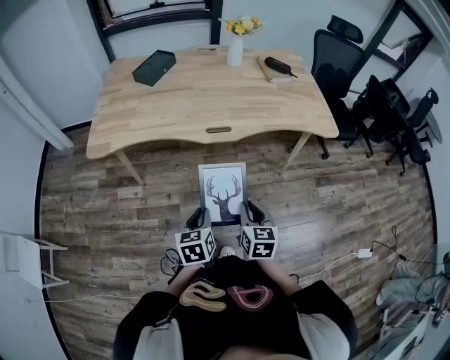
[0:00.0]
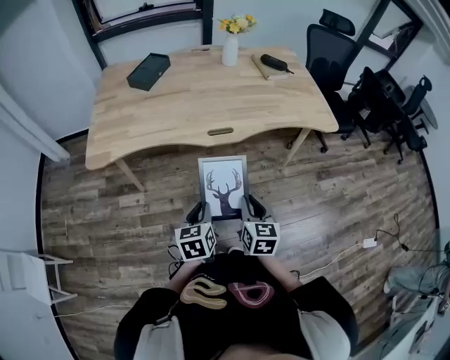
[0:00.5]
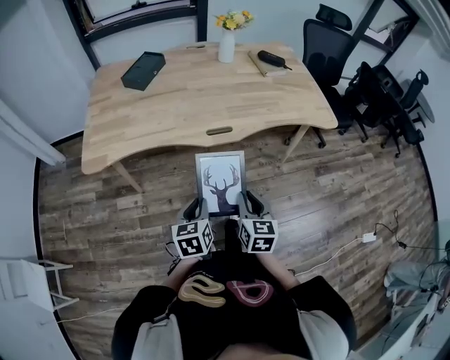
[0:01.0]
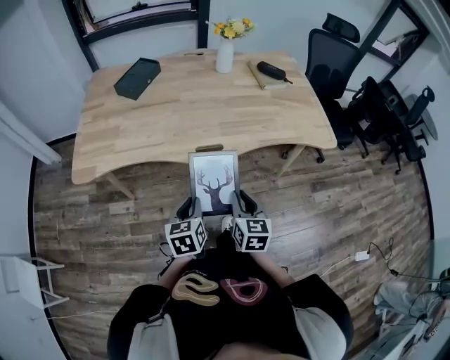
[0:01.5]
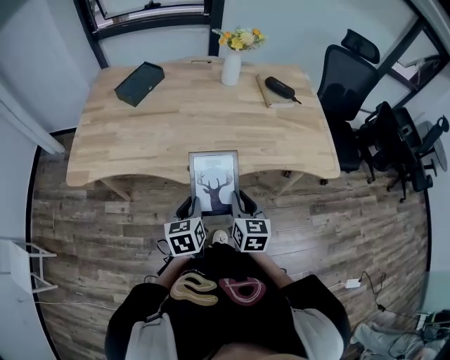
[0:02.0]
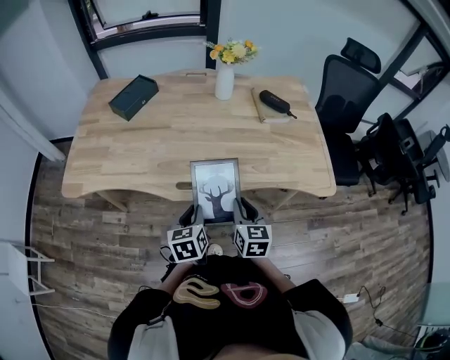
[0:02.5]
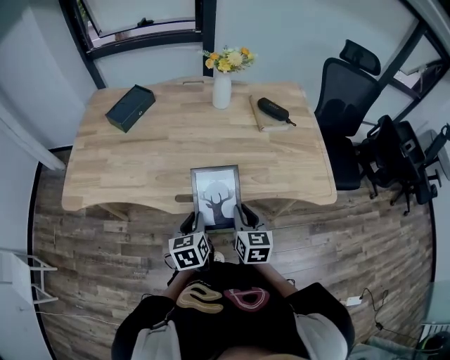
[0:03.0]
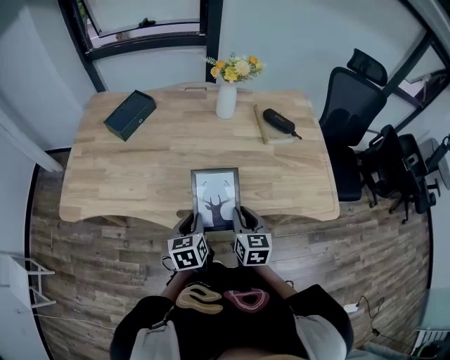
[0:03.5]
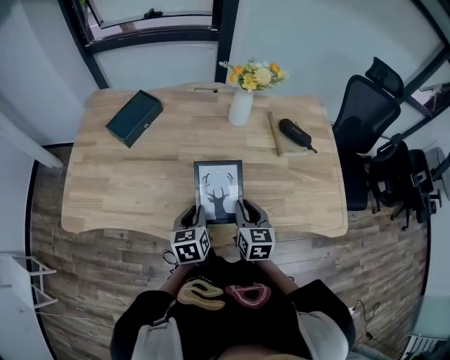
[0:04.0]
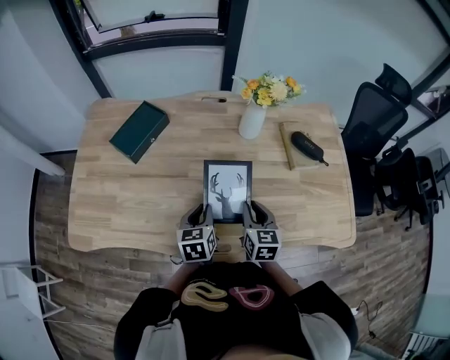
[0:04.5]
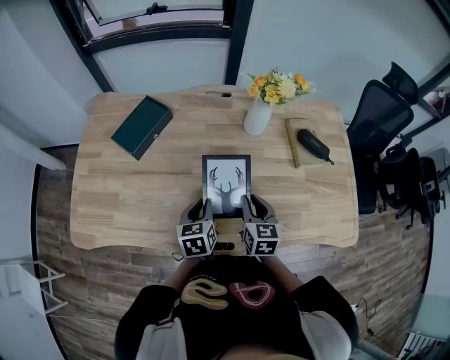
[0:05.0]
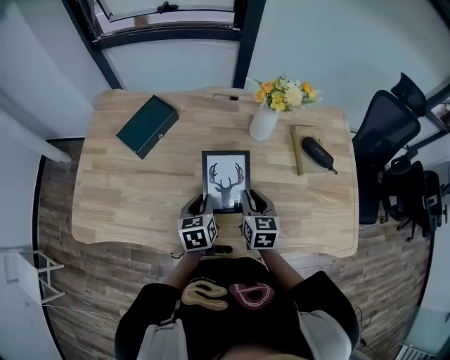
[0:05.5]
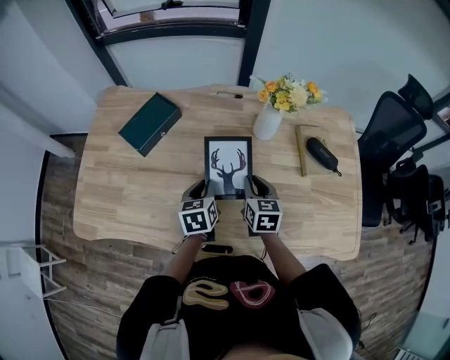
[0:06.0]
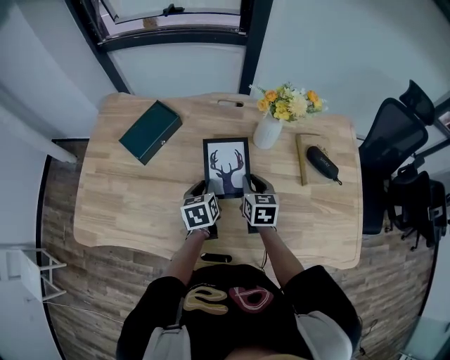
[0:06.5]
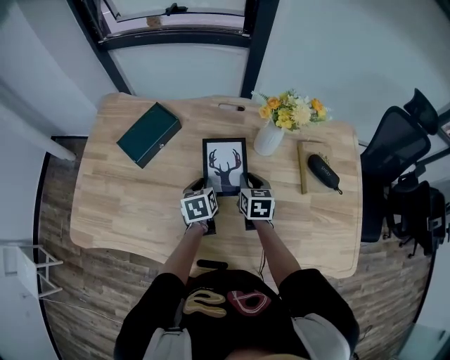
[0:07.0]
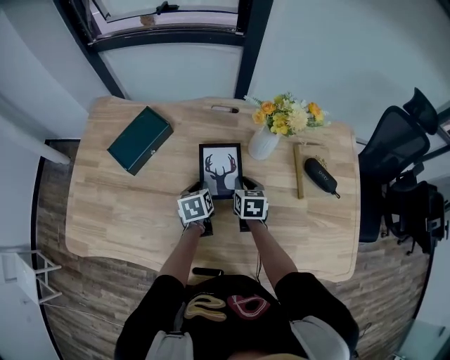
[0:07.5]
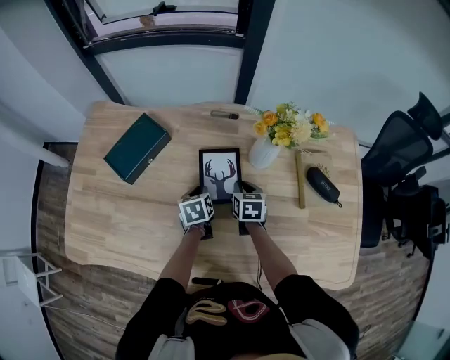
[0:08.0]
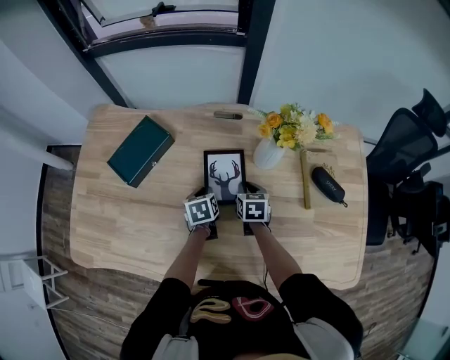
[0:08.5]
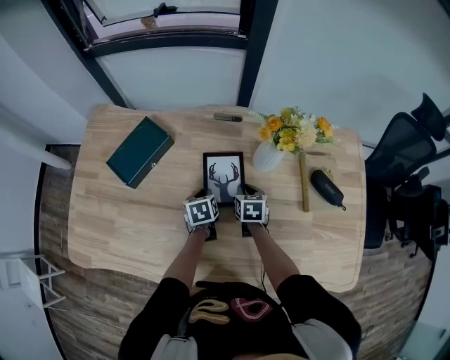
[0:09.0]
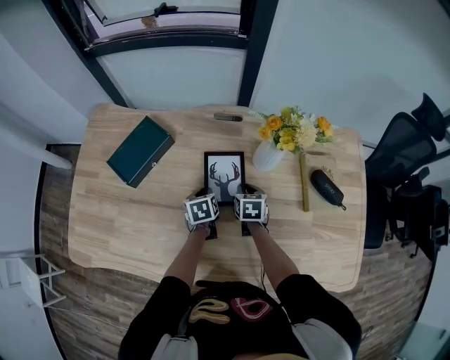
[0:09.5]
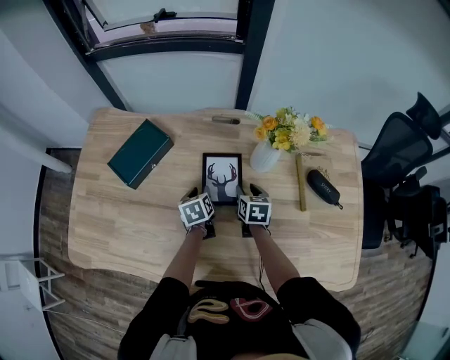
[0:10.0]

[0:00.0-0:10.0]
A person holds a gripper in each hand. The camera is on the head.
0:00.0 to 0:02.0: The two grippers go some 25 cm forward.
0:02.0 to 0:04.0: The two grippers go about 25 cm forward.
0:04.0 to 0:06.0: The two grippers go roughly 15 cm forward.
0:06.0 to 0:08.0: Both grippers travel together forward and downward, some 15 cm.
0:08.0 to 0:10.0: The right gripper opens its fingers.

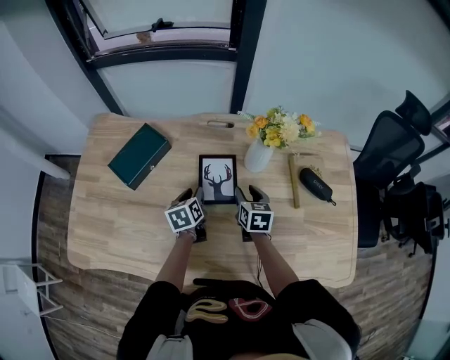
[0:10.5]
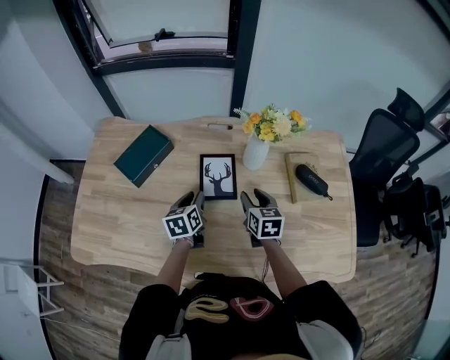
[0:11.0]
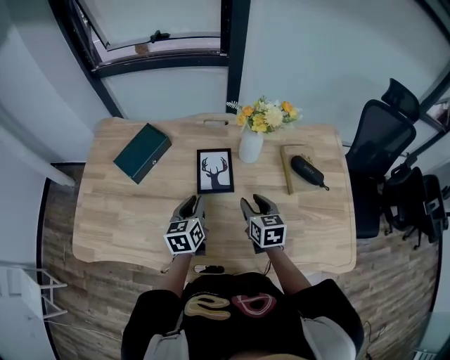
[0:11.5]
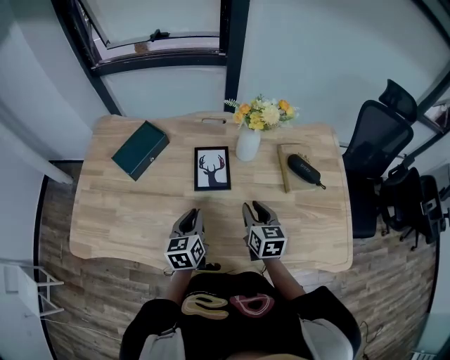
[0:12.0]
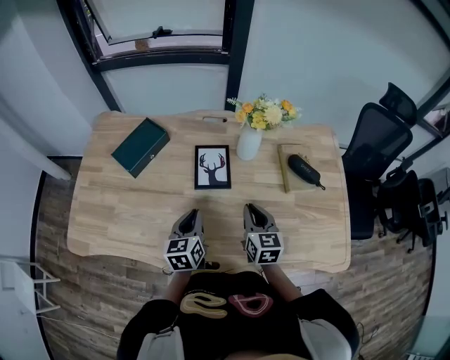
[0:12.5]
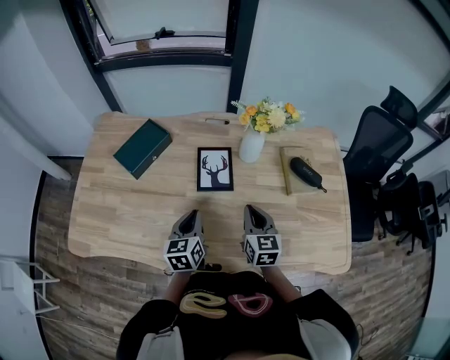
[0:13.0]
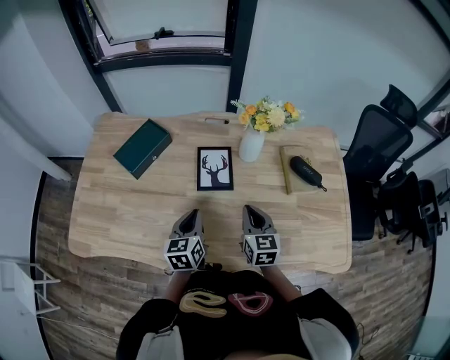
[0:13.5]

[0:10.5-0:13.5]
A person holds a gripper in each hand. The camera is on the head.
0:10.5 to 0:12.0: Both grippers travel together backward and upward, approximately 15 cm.
0:12.0 to 0:13.5: The right gripper closes.

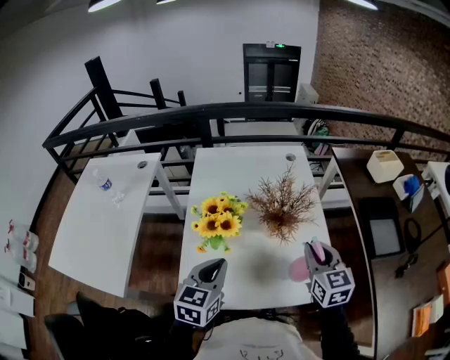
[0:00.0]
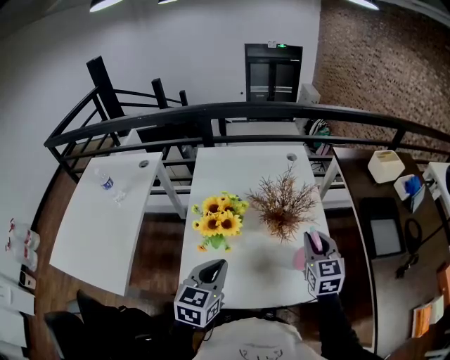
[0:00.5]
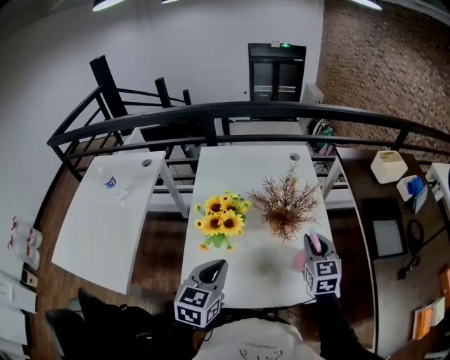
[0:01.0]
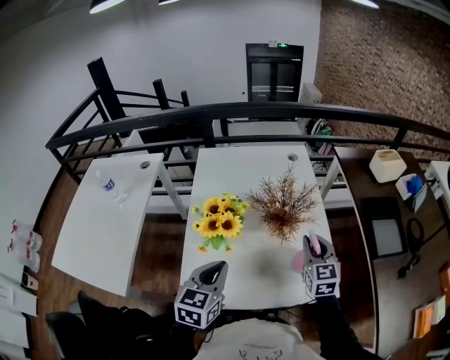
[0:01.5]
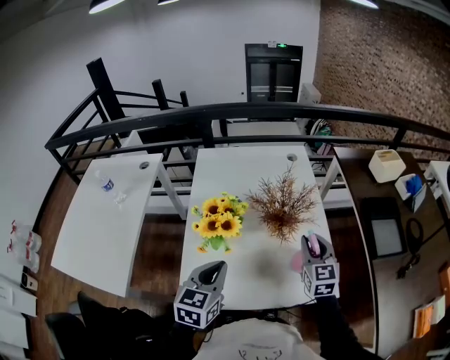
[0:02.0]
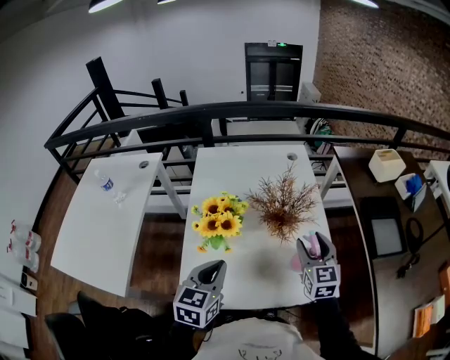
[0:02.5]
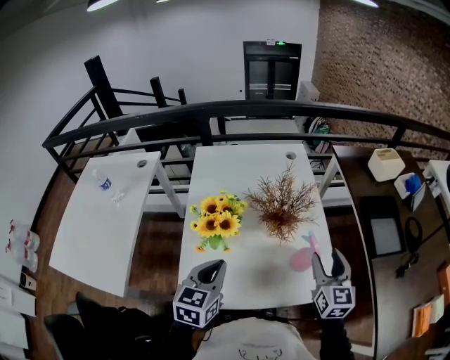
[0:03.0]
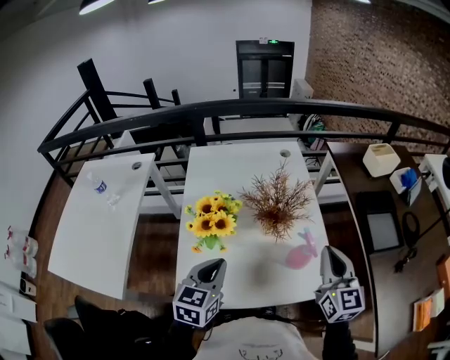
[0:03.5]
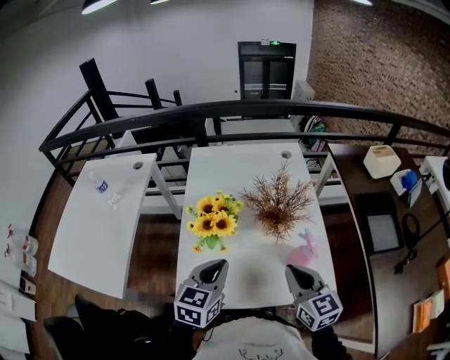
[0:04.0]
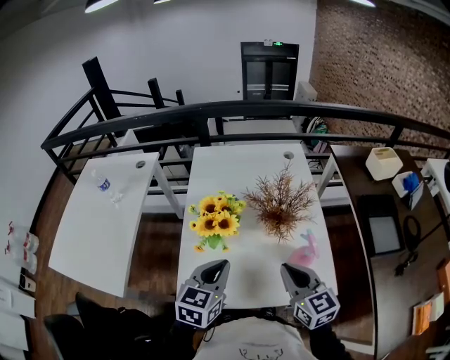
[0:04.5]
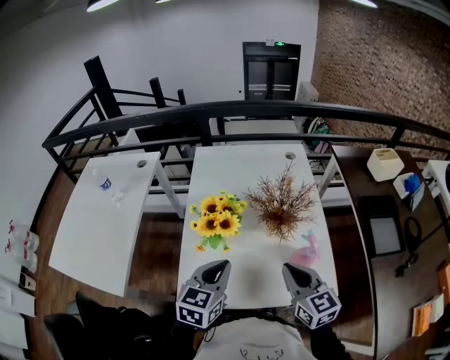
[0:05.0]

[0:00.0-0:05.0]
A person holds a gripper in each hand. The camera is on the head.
0:00.0 to 0:02.5: The right gripper opens.
0:02.5 to 0:05.0: The right gripper moves backward and to the left, roughly 10 cm, swivels some 20 degrees, and closes up.

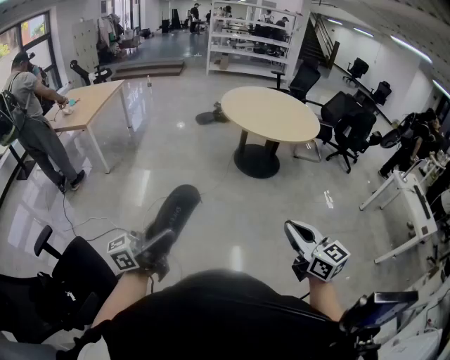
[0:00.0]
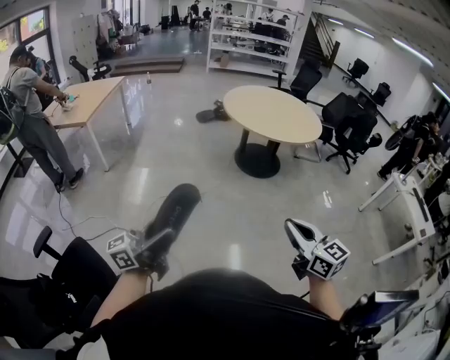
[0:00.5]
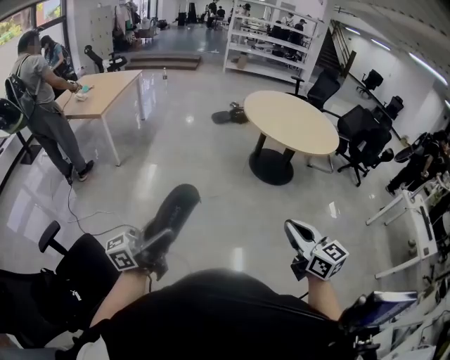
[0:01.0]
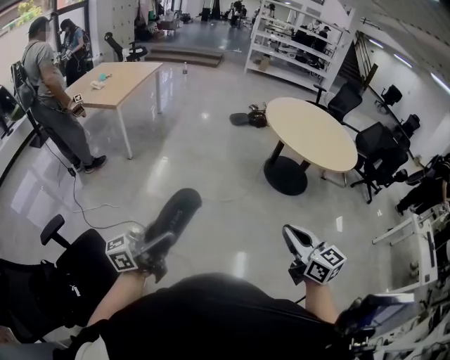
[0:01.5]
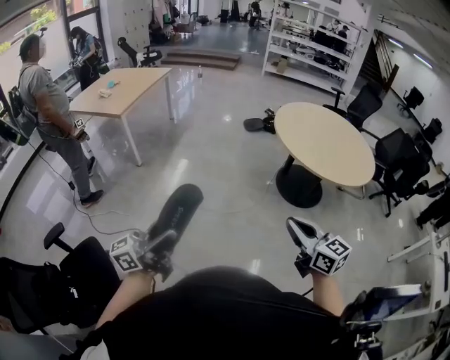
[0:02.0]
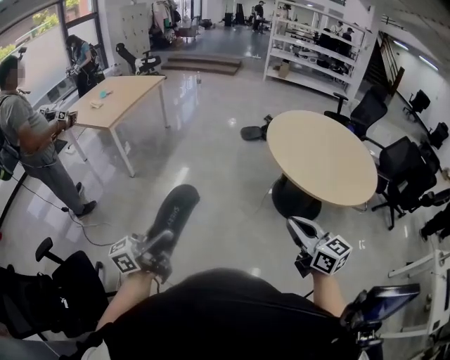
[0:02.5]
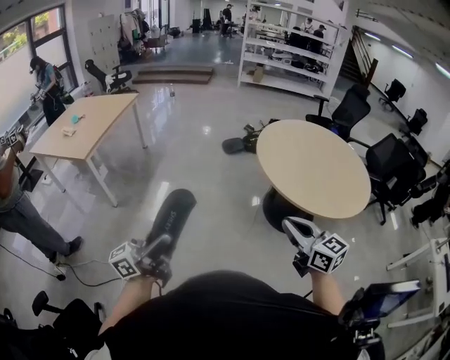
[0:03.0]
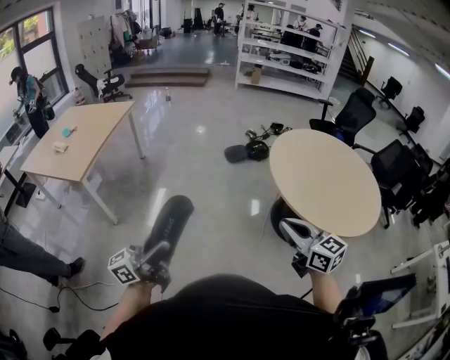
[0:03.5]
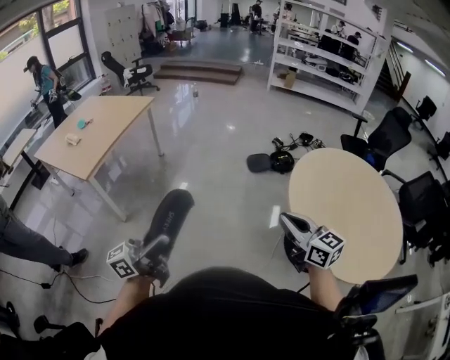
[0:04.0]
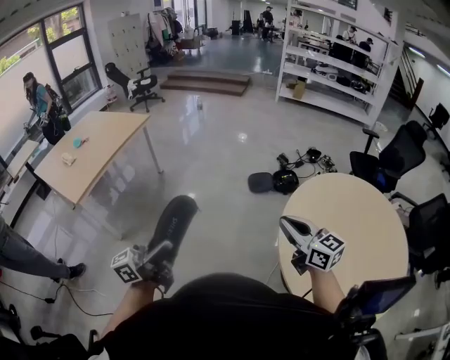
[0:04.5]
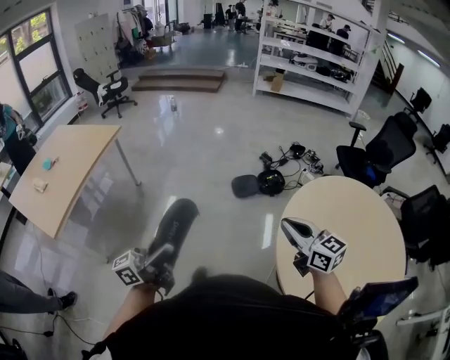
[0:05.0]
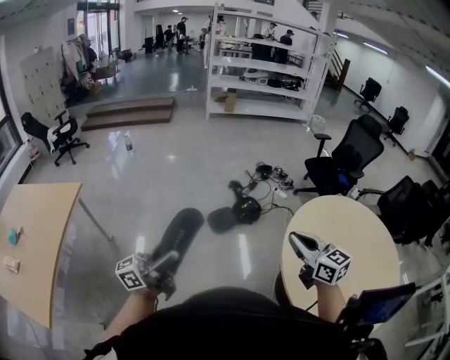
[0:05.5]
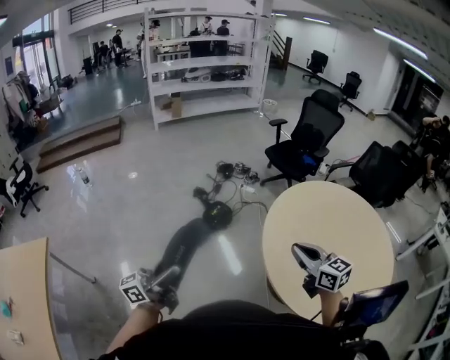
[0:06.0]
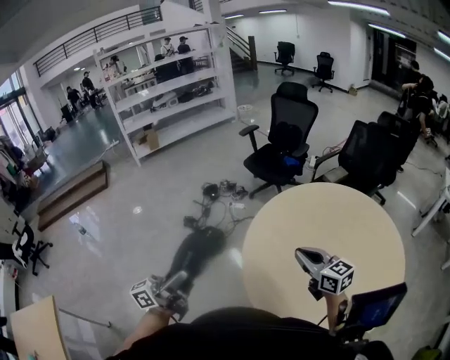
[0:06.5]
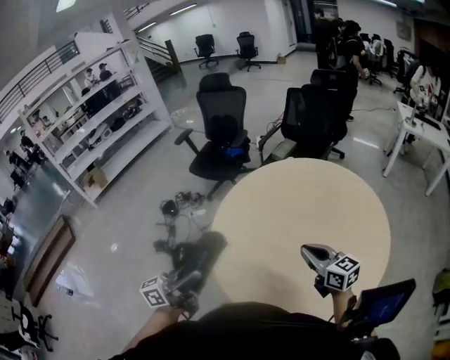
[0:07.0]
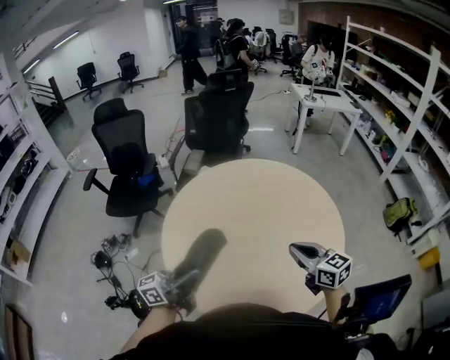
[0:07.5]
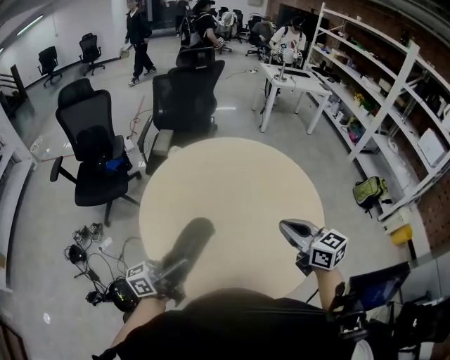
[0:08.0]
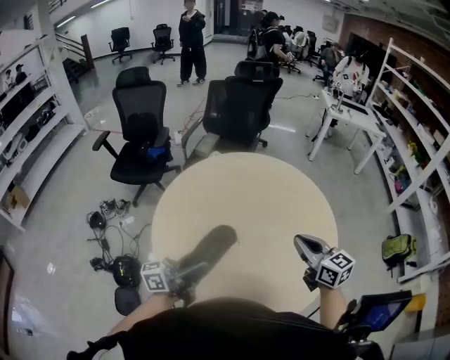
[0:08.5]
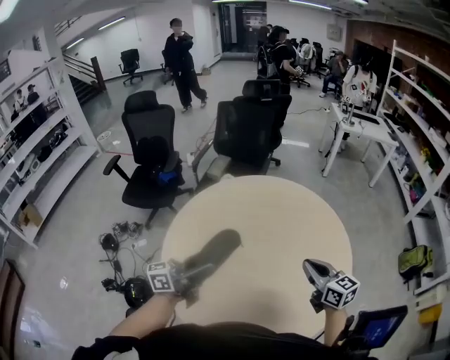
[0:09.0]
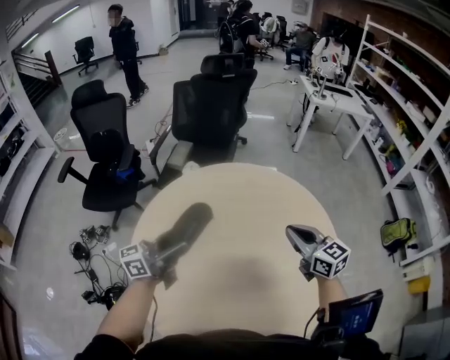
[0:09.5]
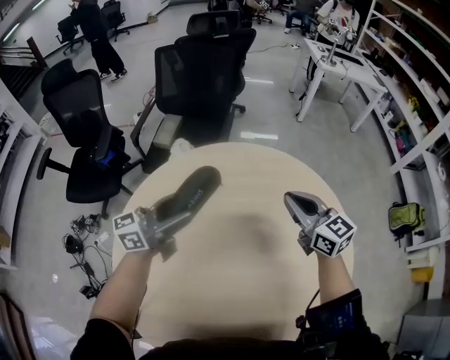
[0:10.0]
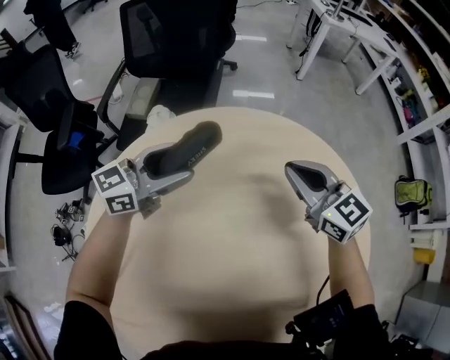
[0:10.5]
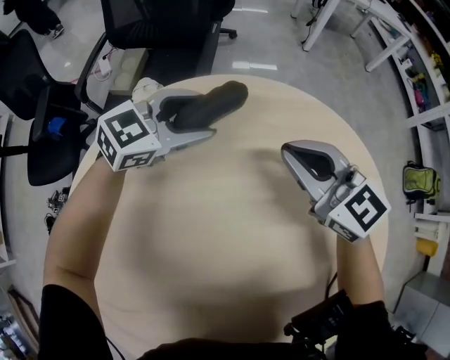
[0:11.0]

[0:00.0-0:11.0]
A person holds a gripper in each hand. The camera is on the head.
0:00.0 to 0:02.0: Both grippers travel together forward and to the left, about 30 cm.
0:02.0 to 0:03.5: The two grippers travel together, forward, about 50 cm.
0:03.5 to 0:05.5: The two grippers travel together, approximately 70 cm.
0:05.5 to 0:07.5: The left gripper moves about 70 cm, and swivels some 90 degrees; the right gripper shifts by roughly 40 cm, and swivels roughly 80 degrees.
0:07.5 to 0:09.0: Both grippers move forward and to the right, roughly 10 cm.
0:09.0 to 0:11.0: The two grippers travel together, forward, approximately 50 cm. Both grippers travel together downward, approximately 25 cm. The right gripper rotates approximately 20 degrees; the left gripper tips its fingers downward by roughly 40 degrees.
